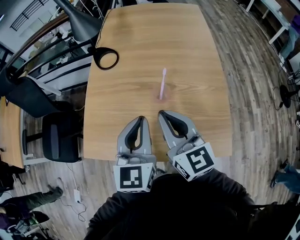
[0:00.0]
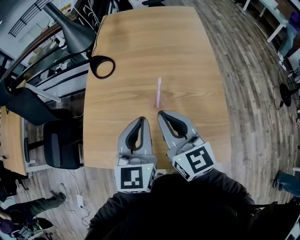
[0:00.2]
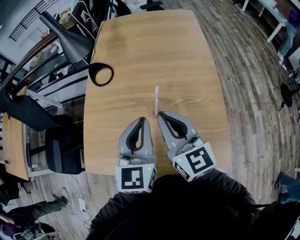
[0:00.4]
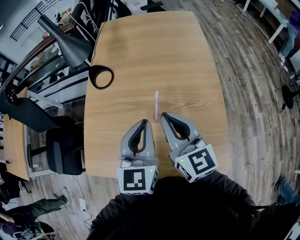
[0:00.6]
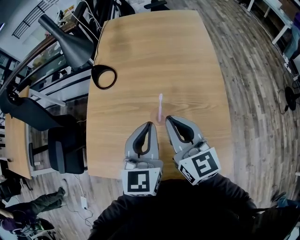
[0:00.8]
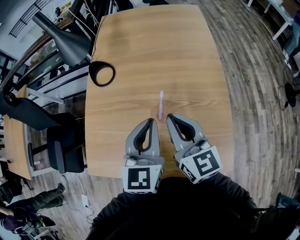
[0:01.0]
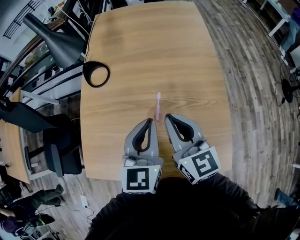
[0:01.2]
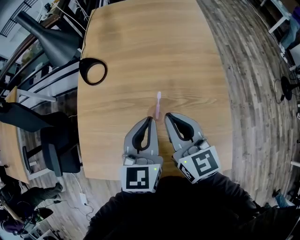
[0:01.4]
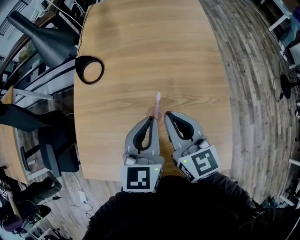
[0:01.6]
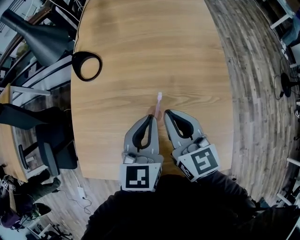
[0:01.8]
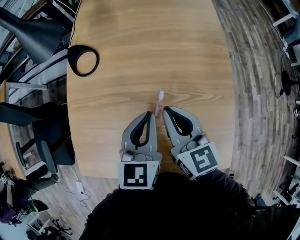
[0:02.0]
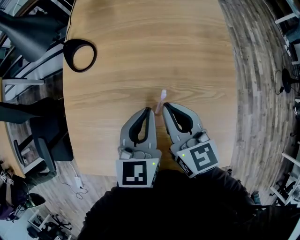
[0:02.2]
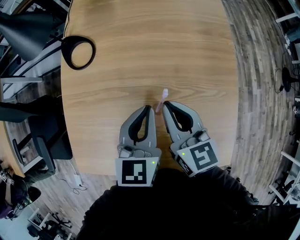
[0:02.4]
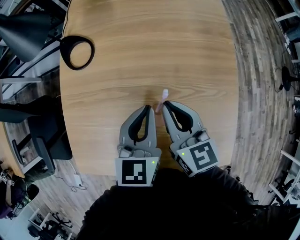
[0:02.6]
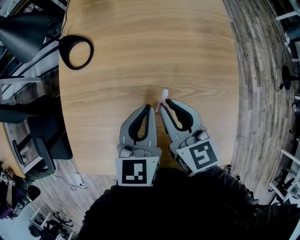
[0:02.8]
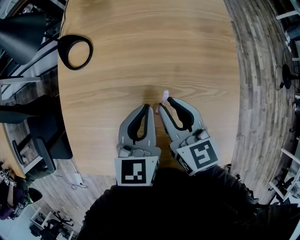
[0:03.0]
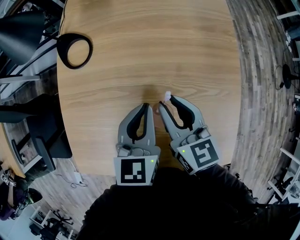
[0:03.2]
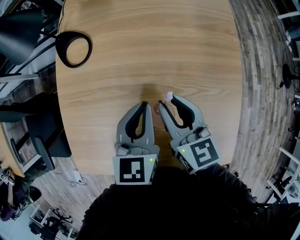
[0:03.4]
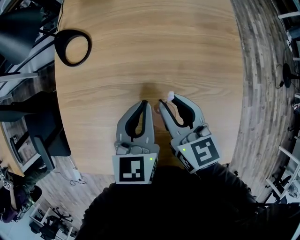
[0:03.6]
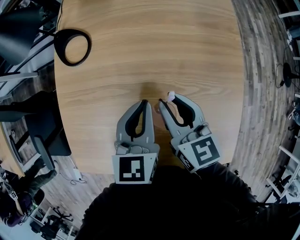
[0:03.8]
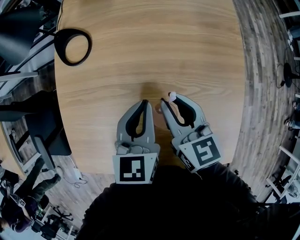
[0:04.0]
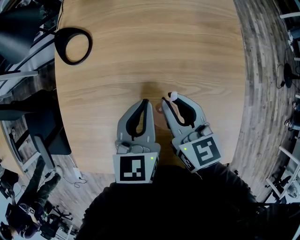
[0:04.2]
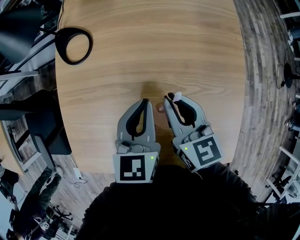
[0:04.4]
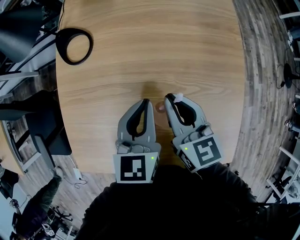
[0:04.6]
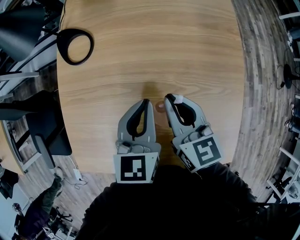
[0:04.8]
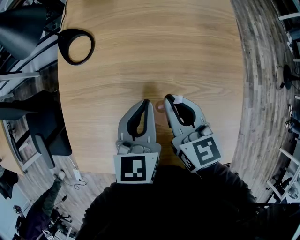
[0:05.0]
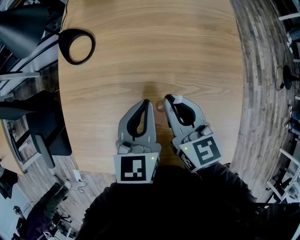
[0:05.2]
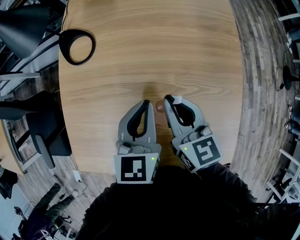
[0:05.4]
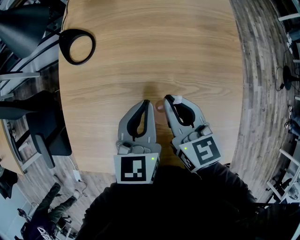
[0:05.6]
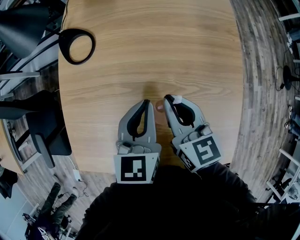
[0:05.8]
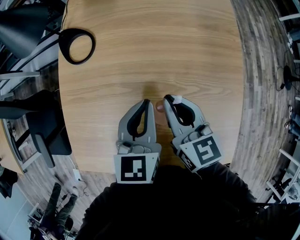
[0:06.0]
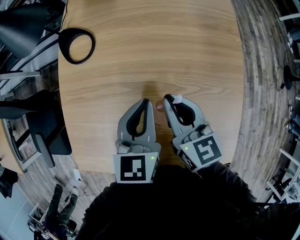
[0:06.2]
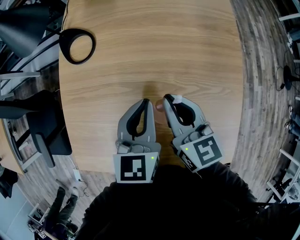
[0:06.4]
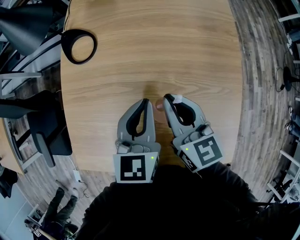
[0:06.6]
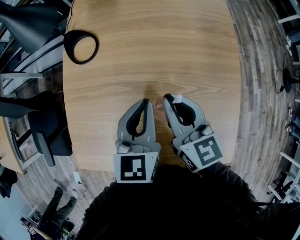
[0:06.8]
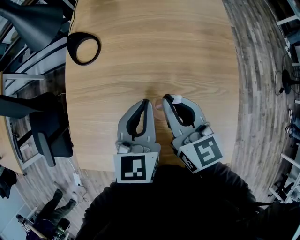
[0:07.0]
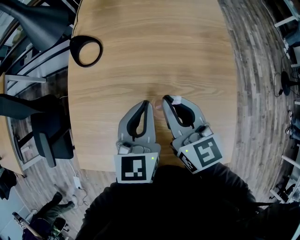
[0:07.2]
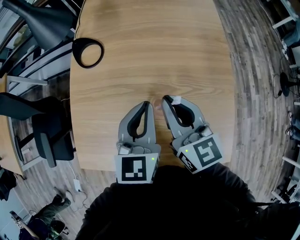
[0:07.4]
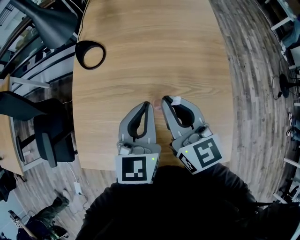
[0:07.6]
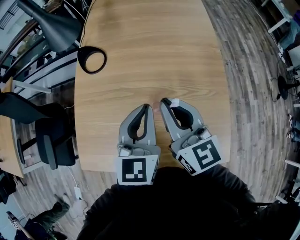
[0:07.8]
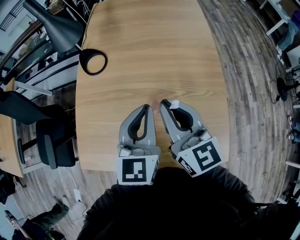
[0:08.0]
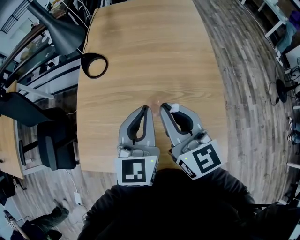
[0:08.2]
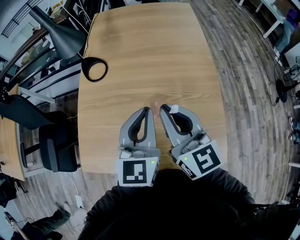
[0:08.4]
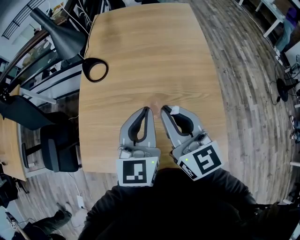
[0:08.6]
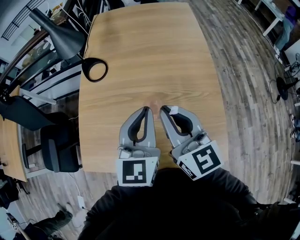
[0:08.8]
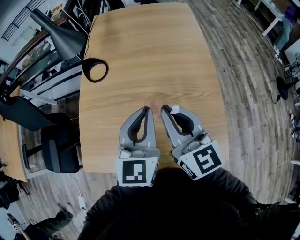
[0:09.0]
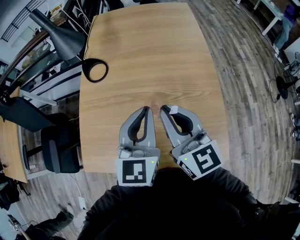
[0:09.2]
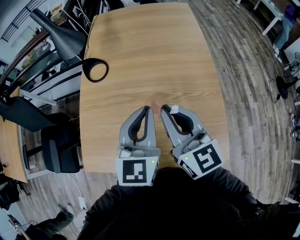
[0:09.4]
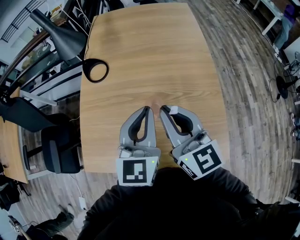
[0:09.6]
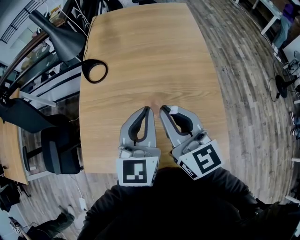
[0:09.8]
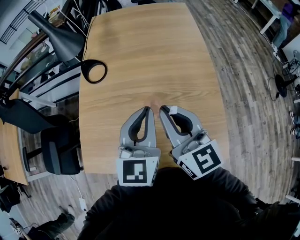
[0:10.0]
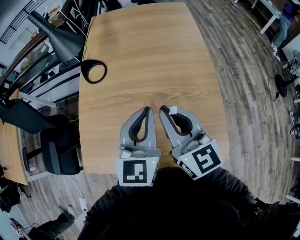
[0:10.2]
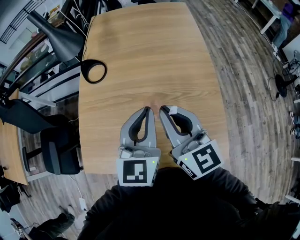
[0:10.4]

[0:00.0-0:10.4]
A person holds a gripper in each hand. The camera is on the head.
0:00.0 to 0:01.4: The two grippers go about 10 cm forward and to the right.
0:01.4 to 0:03.0: Both grippers move downward and forward, roughly 10 cm. The right gripper opens up.
0:03.0 to 0:04.4: The grippers stay close to where they were, moving slightly.
0:04.4 to 0:06.0: Both grippers stay about where they are.
0:06.0 to 0:07.4: Both grippers travel together upward, roughly 5 cm.
0:07.4 to 0:09.0: Both grippers travel together upward and backward, about 10 cm.
0:09.0 to 0:10.4: The two grippers keep their place.

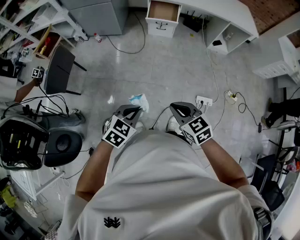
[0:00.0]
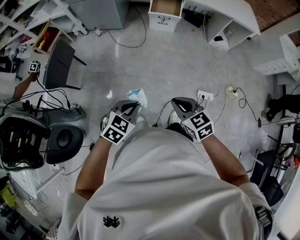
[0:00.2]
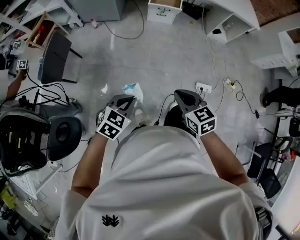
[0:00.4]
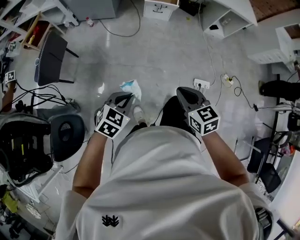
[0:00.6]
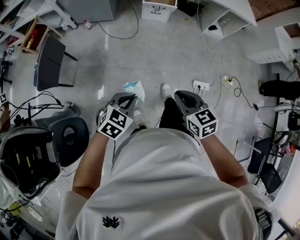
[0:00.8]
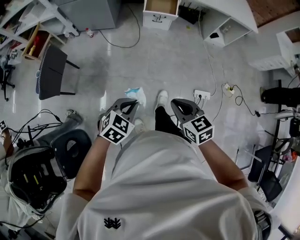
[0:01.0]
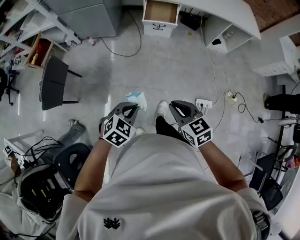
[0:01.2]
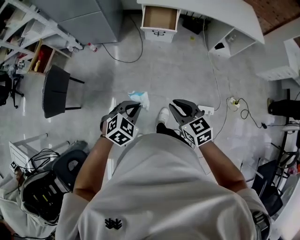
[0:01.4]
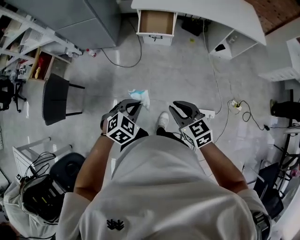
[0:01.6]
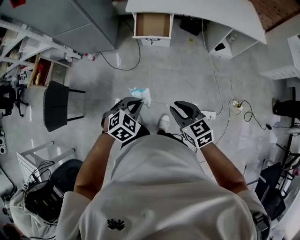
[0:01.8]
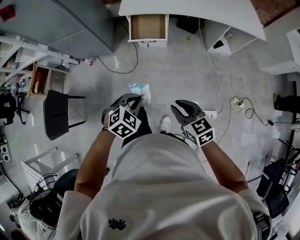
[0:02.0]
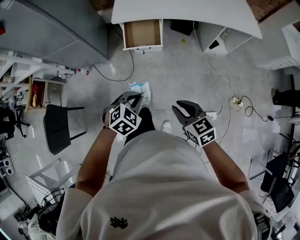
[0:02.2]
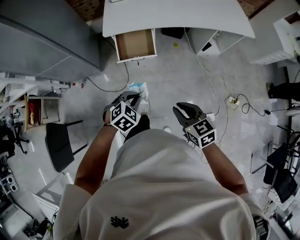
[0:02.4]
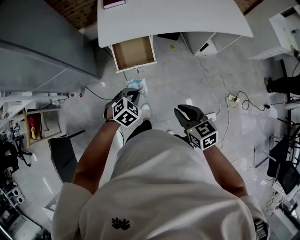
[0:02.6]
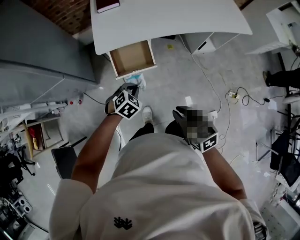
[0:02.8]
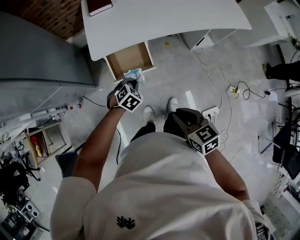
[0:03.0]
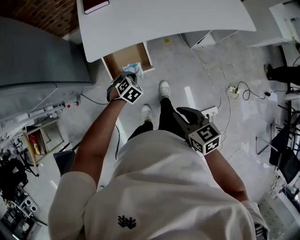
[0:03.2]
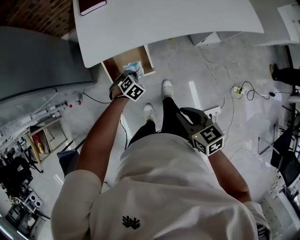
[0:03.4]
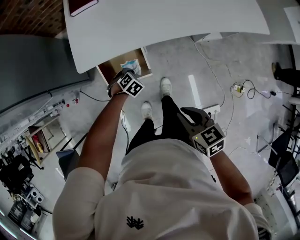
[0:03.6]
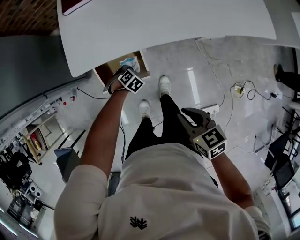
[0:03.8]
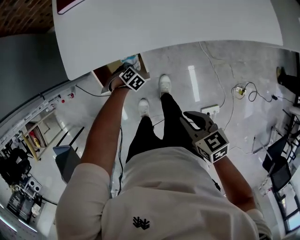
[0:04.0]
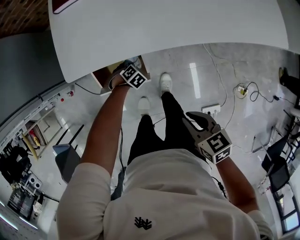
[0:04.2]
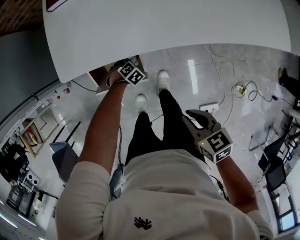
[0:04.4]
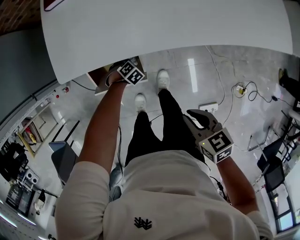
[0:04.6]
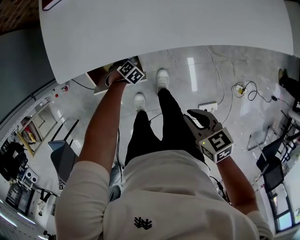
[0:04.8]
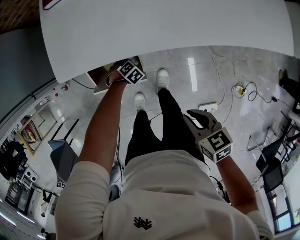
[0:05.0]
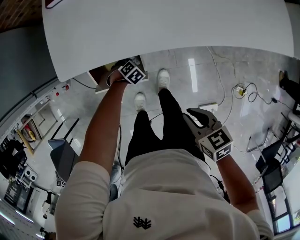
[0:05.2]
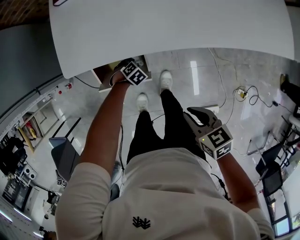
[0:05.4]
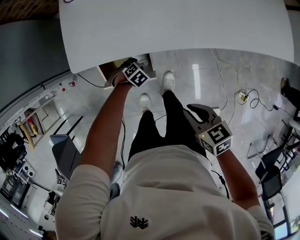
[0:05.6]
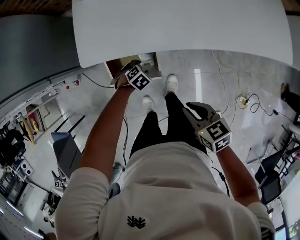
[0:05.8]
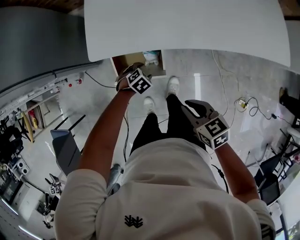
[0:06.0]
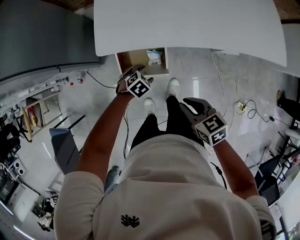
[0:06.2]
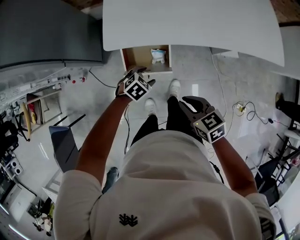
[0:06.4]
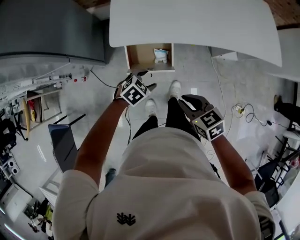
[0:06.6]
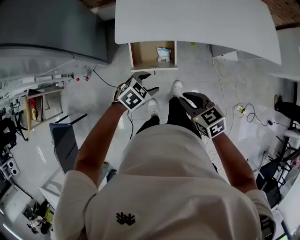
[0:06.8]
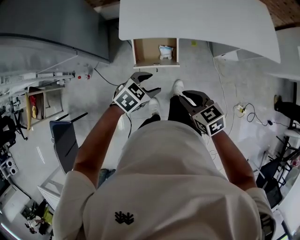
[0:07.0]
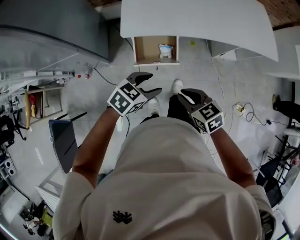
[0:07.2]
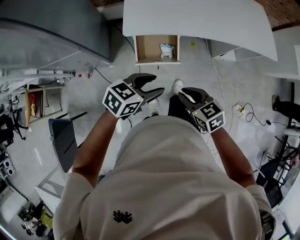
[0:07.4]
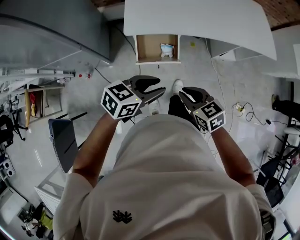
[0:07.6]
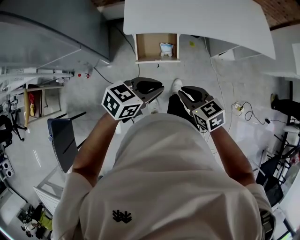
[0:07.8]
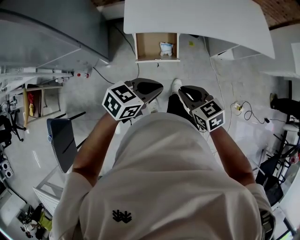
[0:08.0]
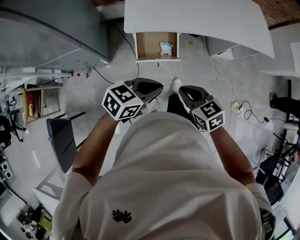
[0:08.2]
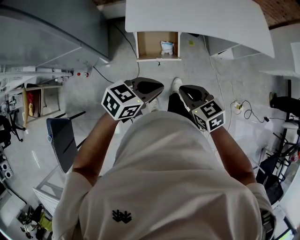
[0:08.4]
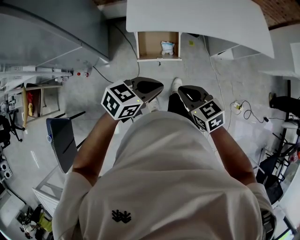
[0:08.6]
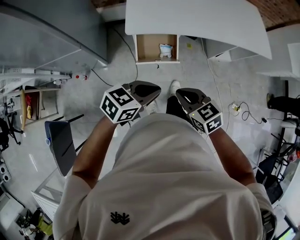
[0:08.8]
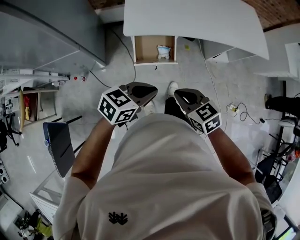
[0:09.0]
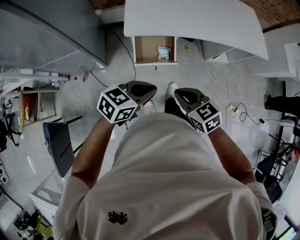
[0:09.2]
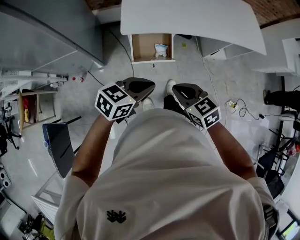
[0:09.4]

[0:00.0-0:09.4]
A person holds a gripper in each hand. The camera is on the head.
0:00.0 to 0:01.6: Both grippers move forward, approximately 30 cm.
0:01.6 to 0:03.2: The two grippers travel together, forward, about 50 cm. The right gripper rotates about 30 degrees.
0:03.2 to 0:04.8: The left gripper goes some 30 cm downward, and rotates about 20 degrees. Meanwhile the right gripper moves approximately 30 cm, and changes its angle by roughly 20 degrees.
0:04.8 to 0:06.2: The right gripper moves roughly 15 cm. The left gripper moves upward, about 20 cm, changes its angle by roughly 20 degrees, and opens its fingers.
0:06.2 to 0:07.8: The right gripper heads backward, to the left and upward, covering some 25 cm. The left gripper shifts some 40 cm upward and backward, tips its fingers upward by roughly 40 degrees, and closes.
0:07.8 to 0:09.4: The right gripper changes place by some 5 cm. Meanwhile the left gripper moves approximately 5 cm.

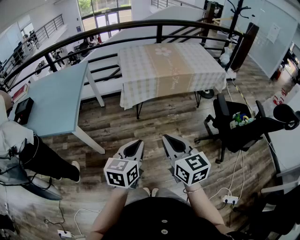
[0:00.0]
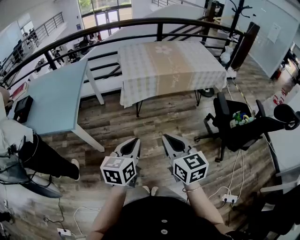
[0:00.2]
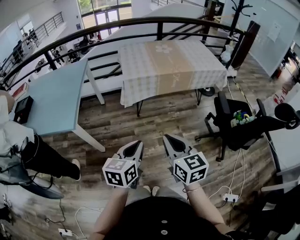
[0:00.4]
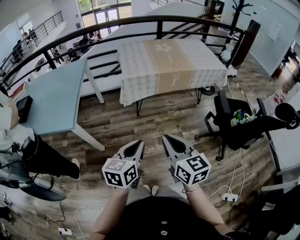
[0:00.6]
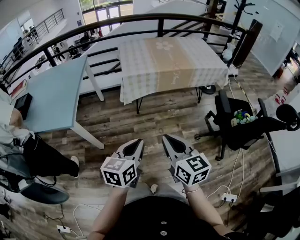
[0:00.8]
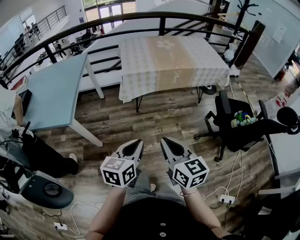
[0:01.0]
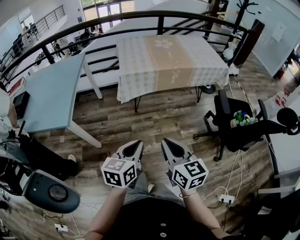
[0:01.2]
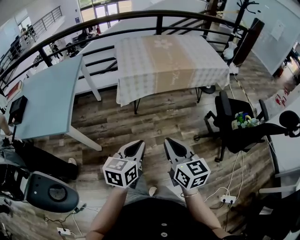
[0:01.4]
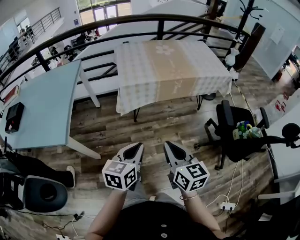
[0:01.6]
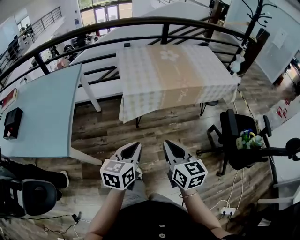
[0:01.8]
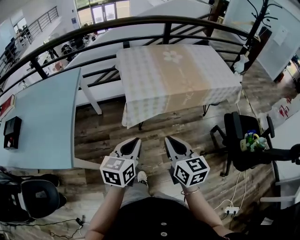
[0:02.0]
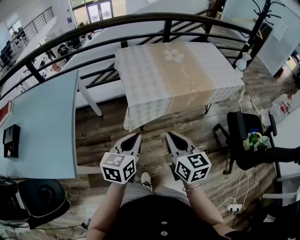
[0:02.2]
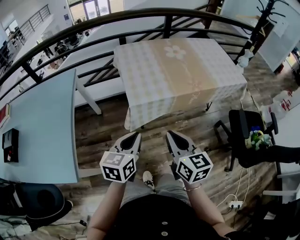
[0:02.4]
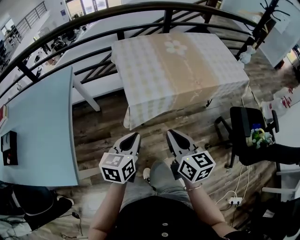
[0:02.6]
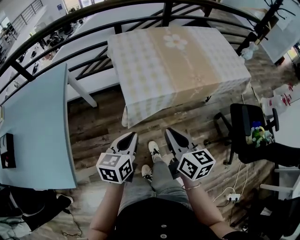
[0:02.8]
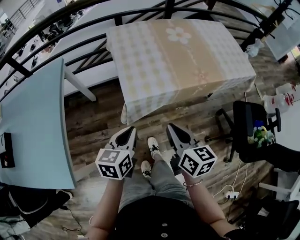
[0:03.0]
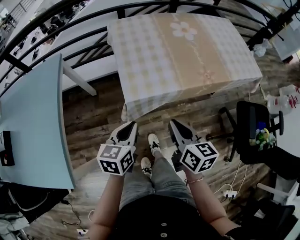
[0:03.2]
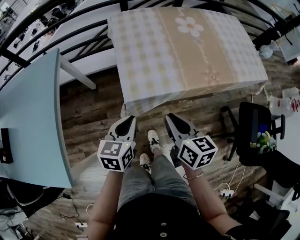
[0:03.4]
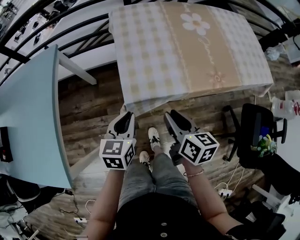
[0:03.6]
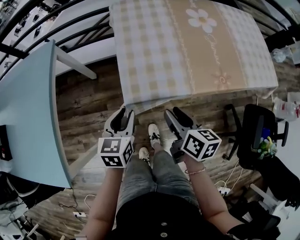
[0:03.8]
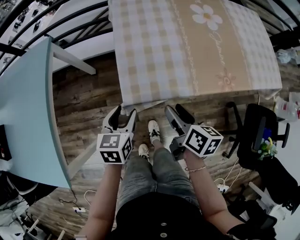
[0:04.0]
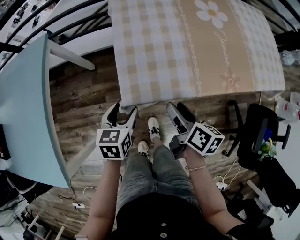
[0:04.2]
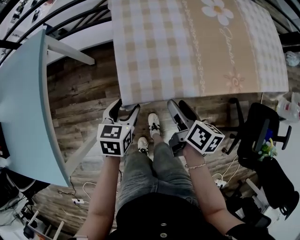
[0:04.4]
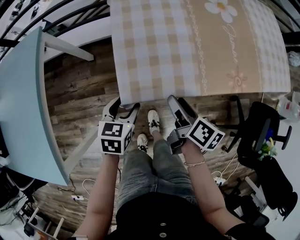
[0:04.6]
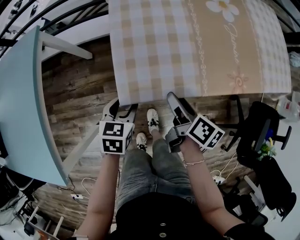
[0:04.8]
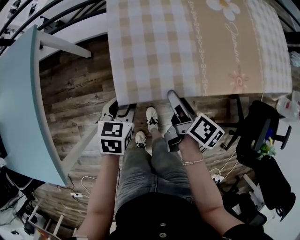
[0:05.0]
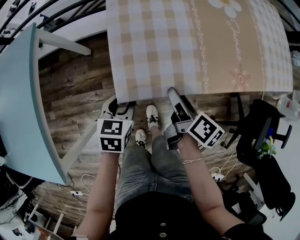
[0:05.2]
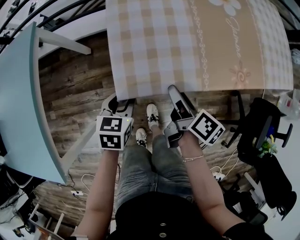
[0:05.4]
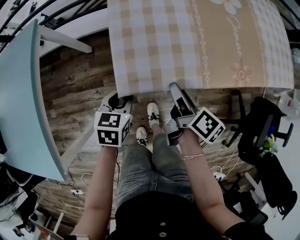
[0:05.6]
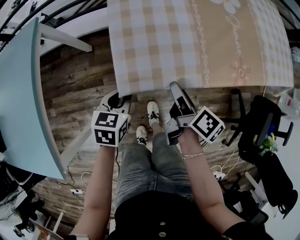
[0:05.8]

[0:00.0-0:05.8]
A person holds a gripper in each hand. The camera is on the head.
0:00.0 to 0:01.4: The right gripper changes place by approximately 5 cm. Meanwhile the left gripper travels forward by some 5 cm.
0:01.4 to 0:02.8: Both grippers travel together forward and to the left, some 35 cm.
0:02.8 to 0:04.4: Both grippers travel together forward and downward, some 25 cm. The left gripper rotates about 20 degrees, and opens up. The right gripper changes its angle by roughly 30 degrees, and opens up.
0:04.4 to 0:05.8: The left gripper closes up.
